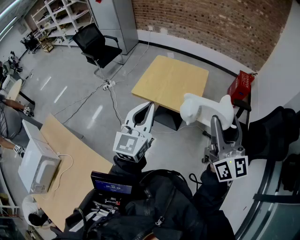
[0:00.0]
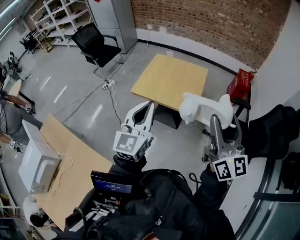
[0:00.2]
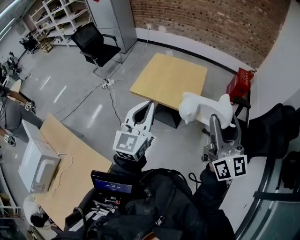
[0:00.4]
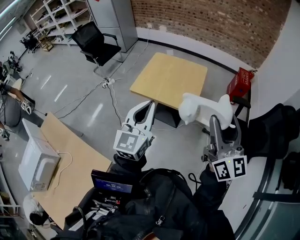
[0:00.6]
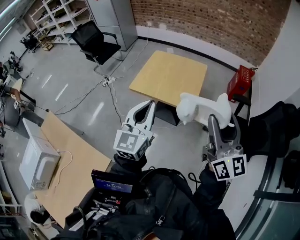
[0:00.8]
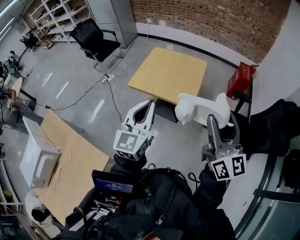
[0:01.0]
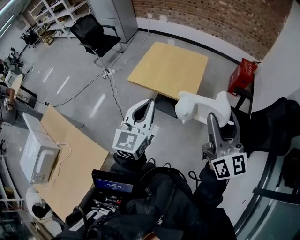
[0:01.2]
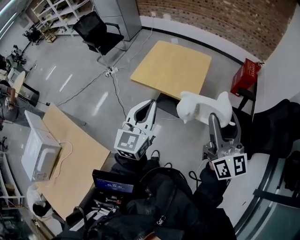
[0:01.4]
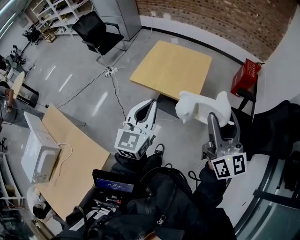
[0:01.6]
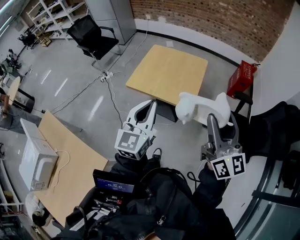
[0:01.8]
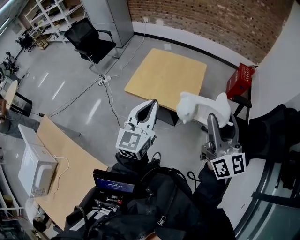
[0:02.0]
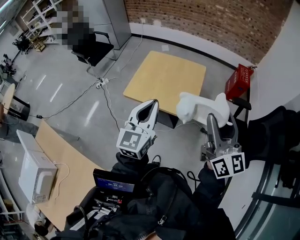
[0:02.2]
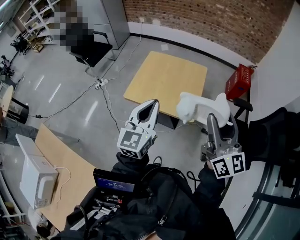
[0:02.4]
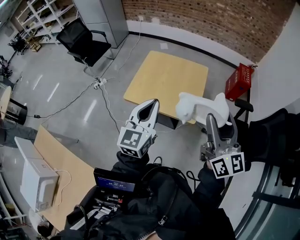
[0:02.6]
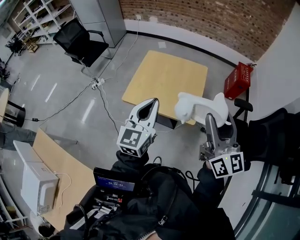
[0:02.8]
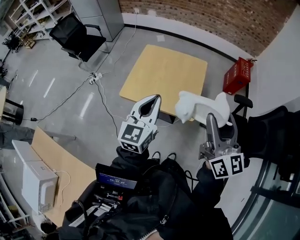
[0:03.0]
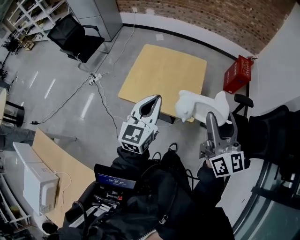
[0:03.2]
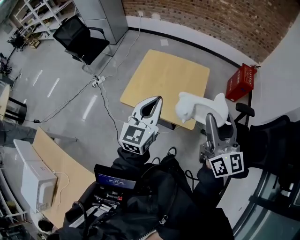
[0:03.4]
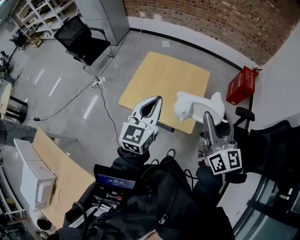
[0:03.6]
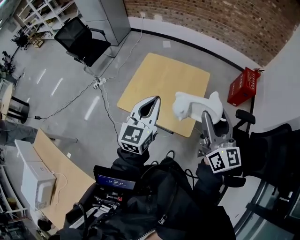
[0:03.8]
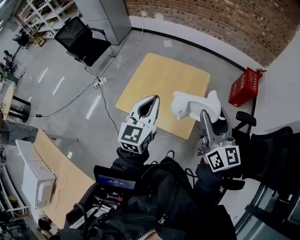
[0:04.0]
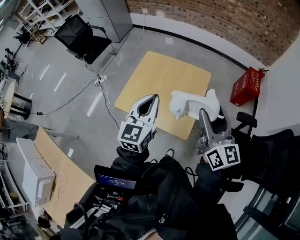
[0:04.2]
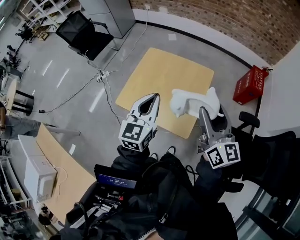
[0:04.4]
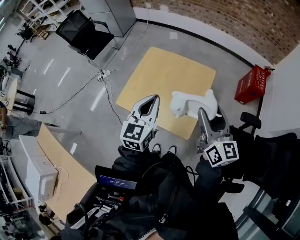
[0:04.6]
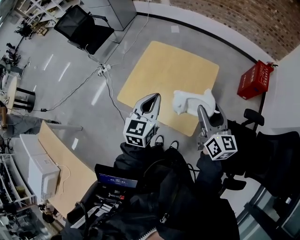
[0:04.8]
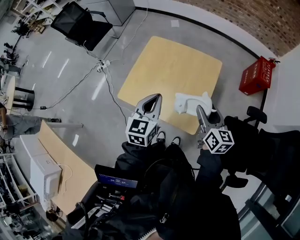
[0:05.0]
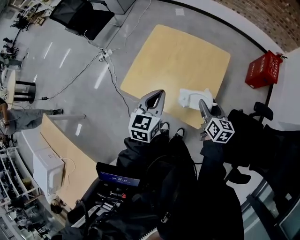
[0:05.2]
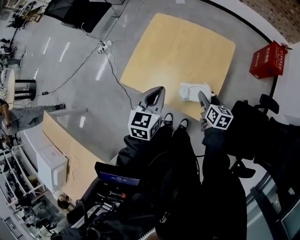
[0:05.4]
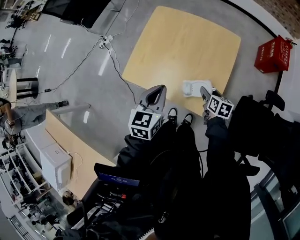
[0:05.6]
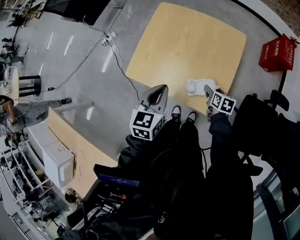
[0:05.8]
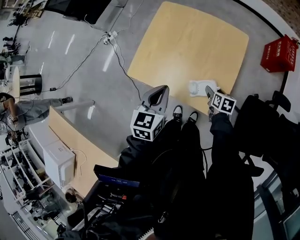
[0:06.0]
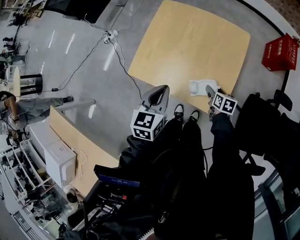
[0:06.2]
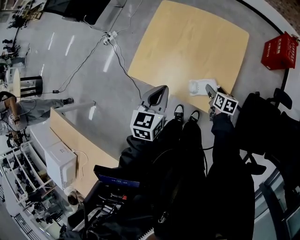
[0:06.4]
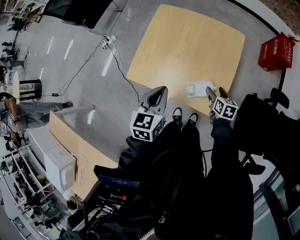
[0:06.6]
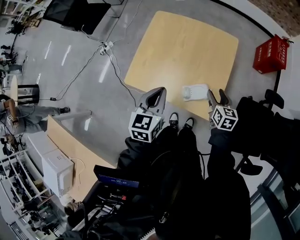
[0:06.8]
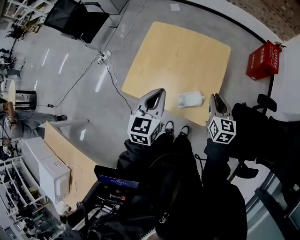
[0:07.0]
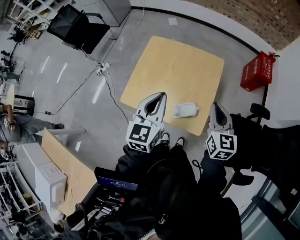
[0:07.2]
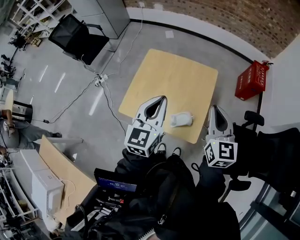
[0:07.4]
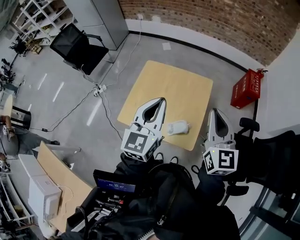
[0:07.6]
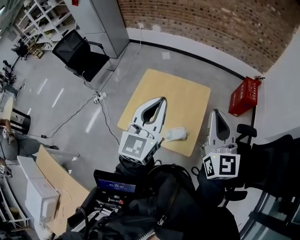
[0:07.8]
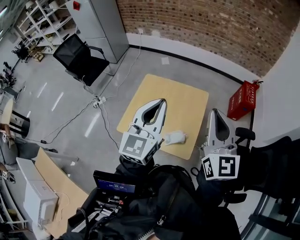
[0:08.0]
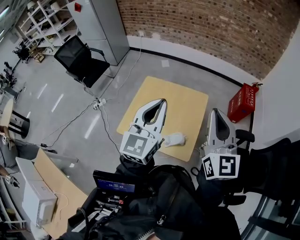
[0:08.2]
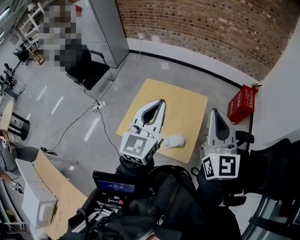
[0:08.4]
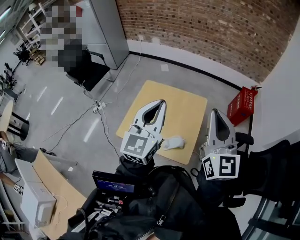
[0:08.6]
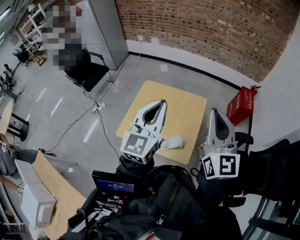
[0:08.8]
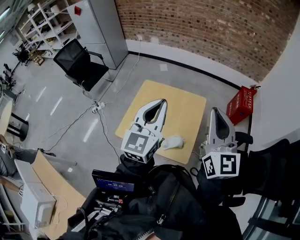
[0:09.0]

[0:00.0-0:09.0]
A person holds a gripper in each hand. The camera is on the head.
0:00.0 to 0:01.6: The right gripper shifts by roughly 5 cm. The left gripper travels to the right by some 5 cm.
0:01.6 to 0:03.0: Both grippers travel together forward, about 20 cm.
0:03.0 to 0:04.4: The left gripper is displaced forward and to the right by roughly 15 cm. The right gripper is displaced forward by approximately 20 cm.
0:04.4 to 0:06.0: The left gripper heads downward and to the left, covering some 20 cm, and rotates approximately 20 degrees; the right gripper shifts some 50 cm downward, and angles its fingers downward, by some 60 degrees.
0:06.0 to 0:07.6: The left gripper heads upward, covering about 25 cm, and angles its fingers upward, by roughly 30 degrees; the right gripper heads upward, covering some 50 cm, tips its fingers upward by some 50 degrees, and closes its fingers.
0:07.6 to 0:09.0: Both grippers move upward, roughly 10 cm.

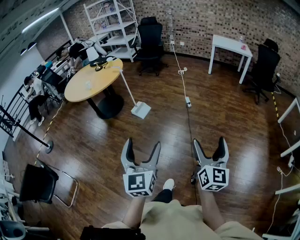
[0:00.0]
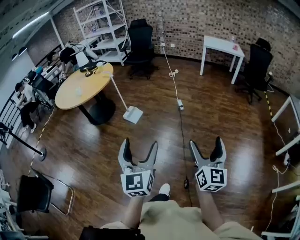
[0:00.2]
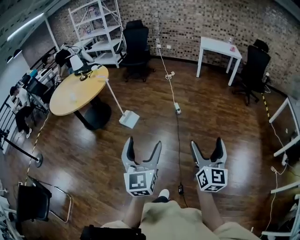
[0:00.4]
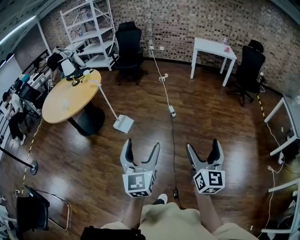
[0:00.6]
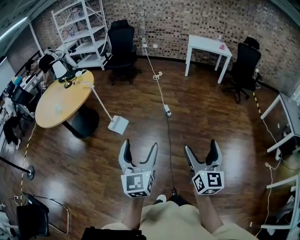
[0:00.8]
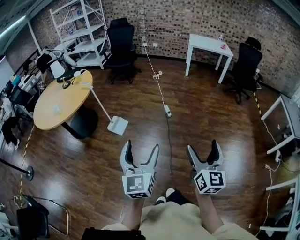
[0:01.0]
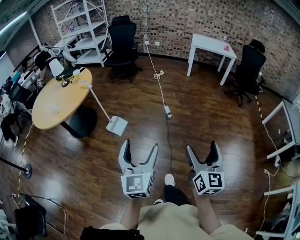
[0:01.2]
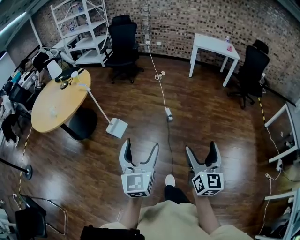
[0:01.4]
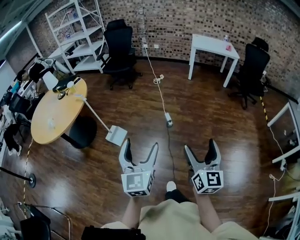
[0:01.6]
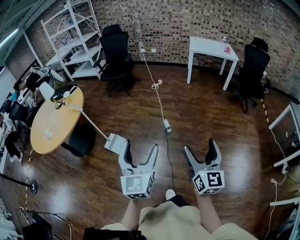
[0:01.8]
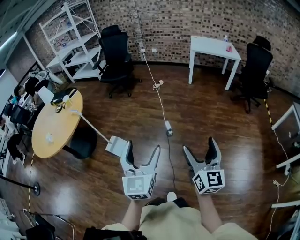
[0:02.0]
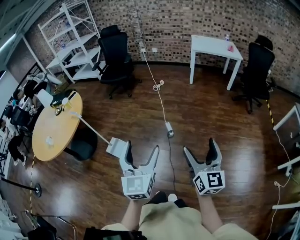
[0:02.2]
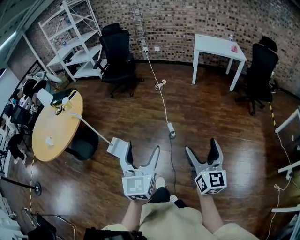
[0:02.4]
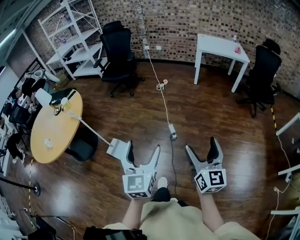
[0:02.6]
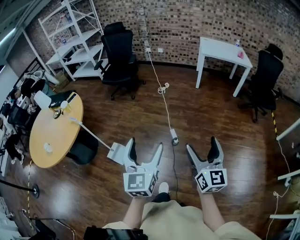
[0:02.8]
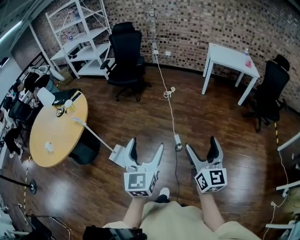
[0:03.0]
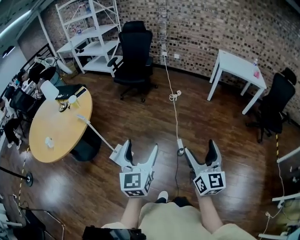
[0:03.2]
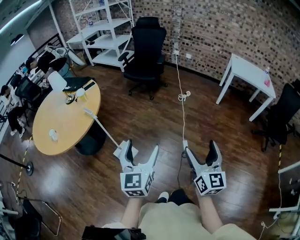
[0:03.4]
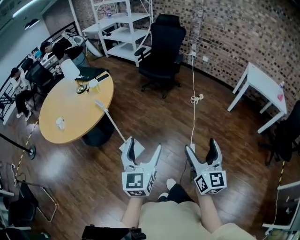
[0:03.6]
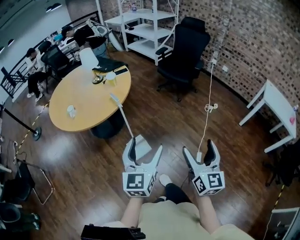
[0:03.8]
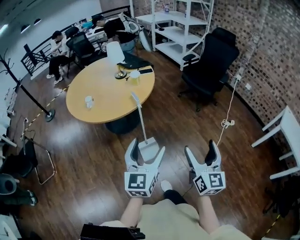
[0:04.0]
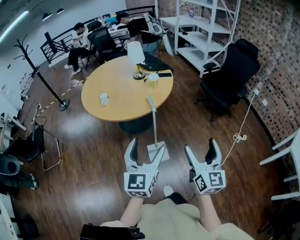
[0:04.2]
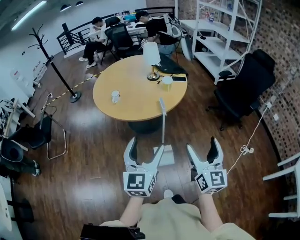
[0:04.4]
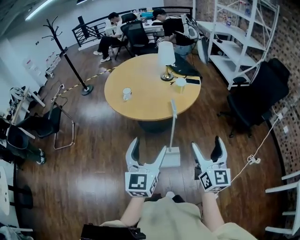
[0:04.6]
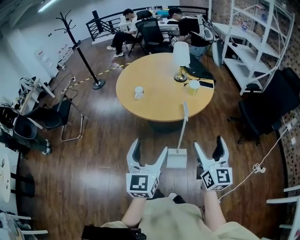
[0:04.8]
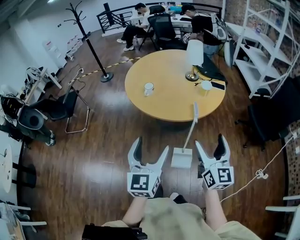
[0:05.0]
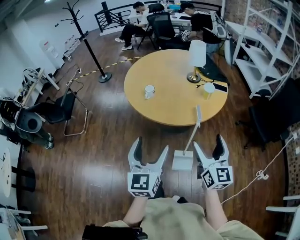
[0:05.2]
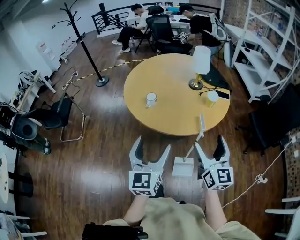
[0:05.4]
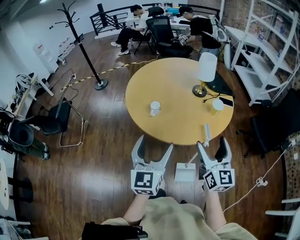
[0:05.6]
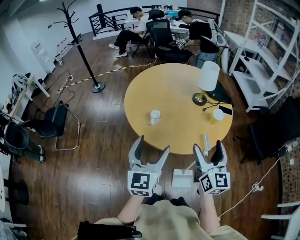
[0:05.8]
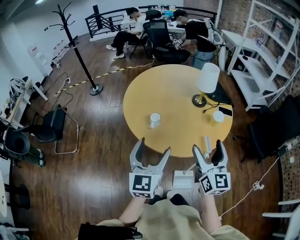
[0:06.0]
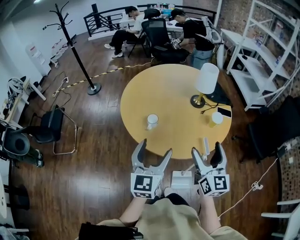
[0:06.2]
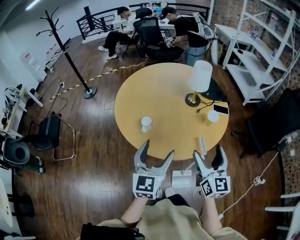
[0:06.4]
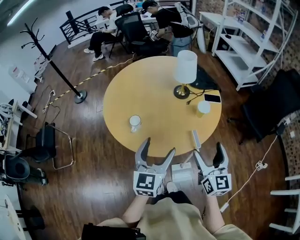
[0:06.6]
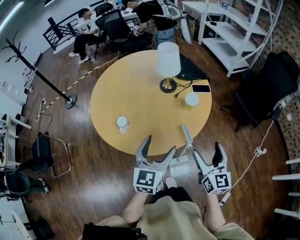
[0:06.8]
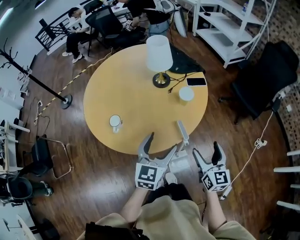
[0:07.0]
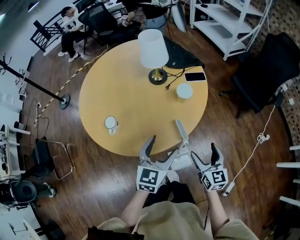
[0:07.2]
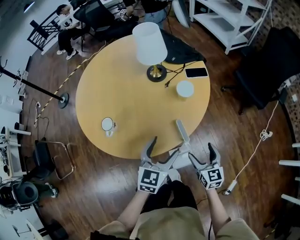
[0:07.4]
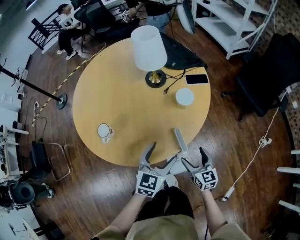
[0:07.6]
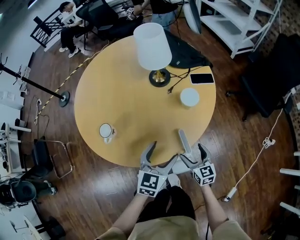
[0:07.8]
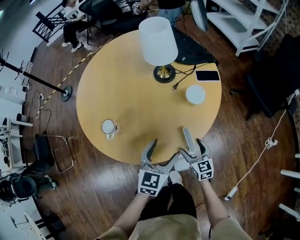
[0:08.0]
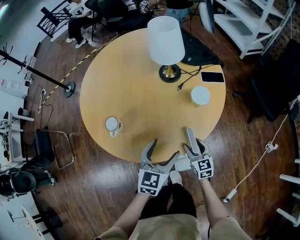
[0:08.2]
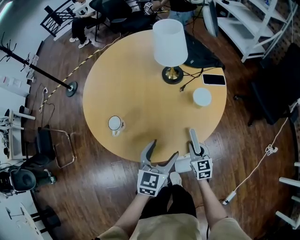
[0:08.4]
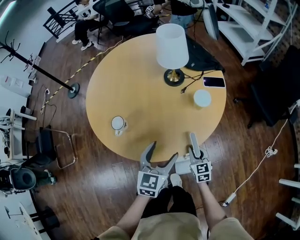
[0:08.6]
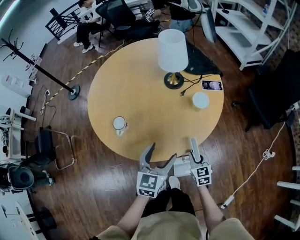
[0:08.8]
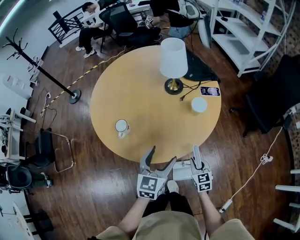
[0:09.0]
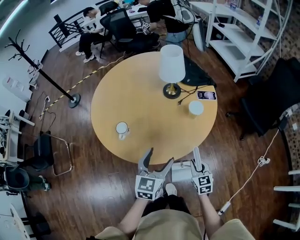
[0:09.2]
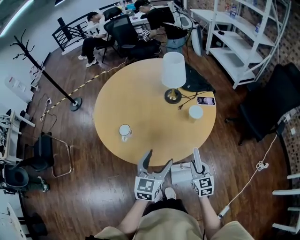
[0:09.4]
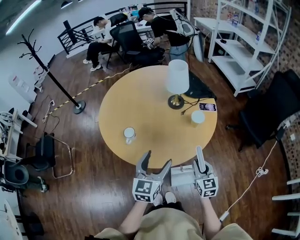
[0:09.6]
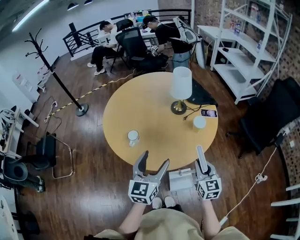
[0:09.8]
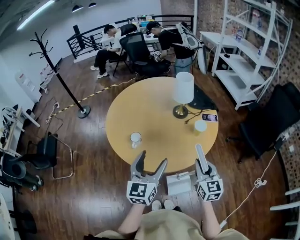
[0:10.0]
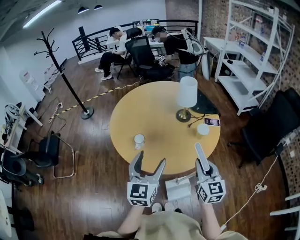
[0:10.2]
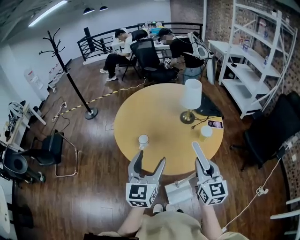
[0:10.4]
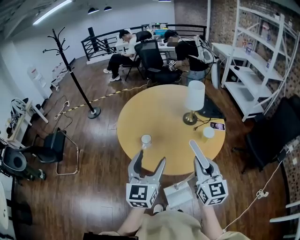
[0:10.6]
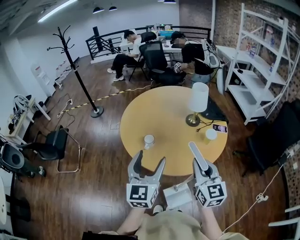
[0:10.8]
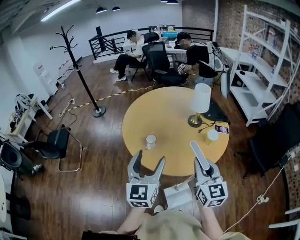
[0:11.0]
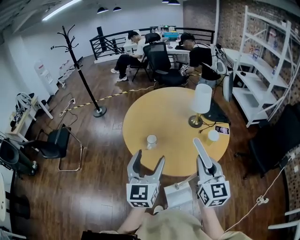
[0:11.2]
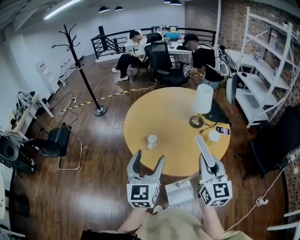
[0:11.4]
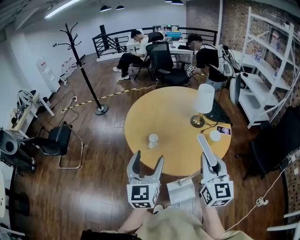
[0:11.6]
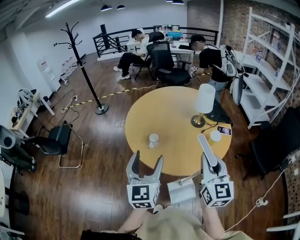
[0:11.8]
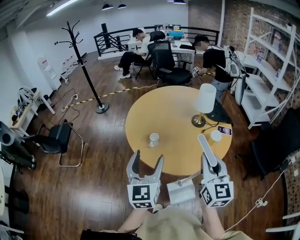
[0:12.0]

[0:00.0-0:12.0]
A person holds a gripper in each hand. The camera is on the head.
0:00.0 to 0:01.6: Both grippers travel together forward, approximately 40 cm.
0:01.6 to 0:03.0: Both grippers travel together forward, roughly 30 cm.
0:03.0 to 0:04.4: The left gripper ends up about 35 cm from where it was, and rotates approximately 50 degrees. Meanwhile the right gripper moves roughly 50 cm, and turns by some 60 degrees.
0:04.4 to 0:06.0: The two grippers go roughly 35 cm forward and to the left.
0:06.0 to 0:07.6: The right gripper travels downward and to the right by some 35 cm, and swivels approximately 30 degrees. Meanwhile the left gripper moves to the right, downward and forward, approximately 35 cm, and changes its angle by some 40 degrees.
0:07.6 to 0:09.0: The right gripper closes. The left gripper travels to the left by roughly 5 cm.
0:09.0 to 0:10.4: The right gripper is displaced upward by roughly 35 cm, and swivels about 30 degrees. The left gripper shifts some 25 cm upward and to the left, and rotates about 30 degrees.
0:10.4 to 0:12.0: The right gripper heads upward, covering about 5 cm; the left gripper is displaced to the left by about 5 cm.

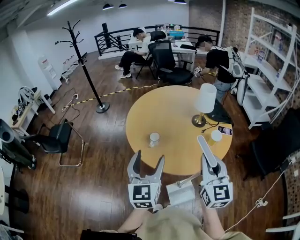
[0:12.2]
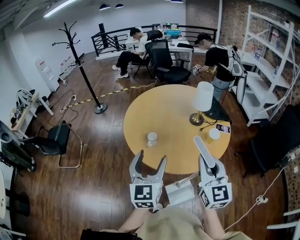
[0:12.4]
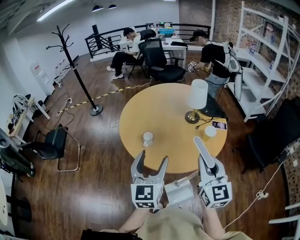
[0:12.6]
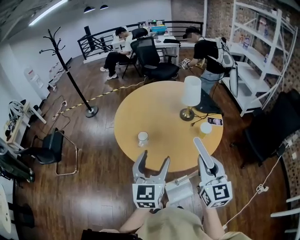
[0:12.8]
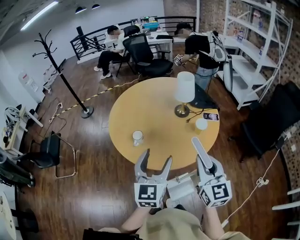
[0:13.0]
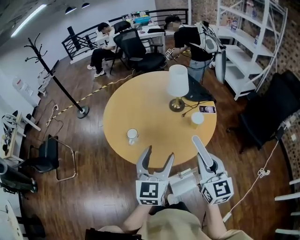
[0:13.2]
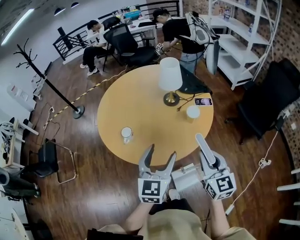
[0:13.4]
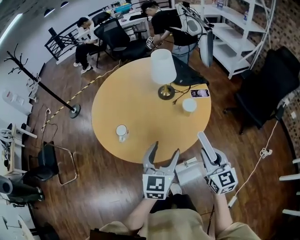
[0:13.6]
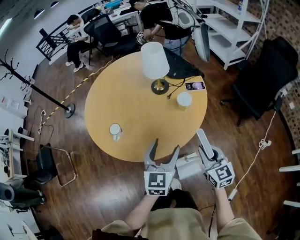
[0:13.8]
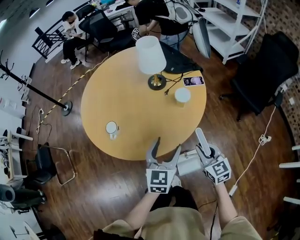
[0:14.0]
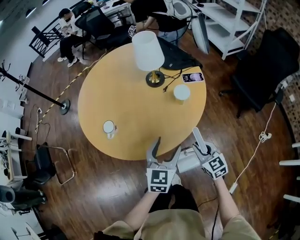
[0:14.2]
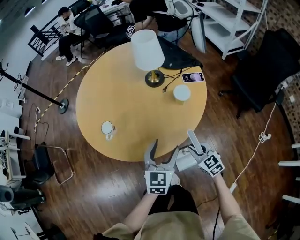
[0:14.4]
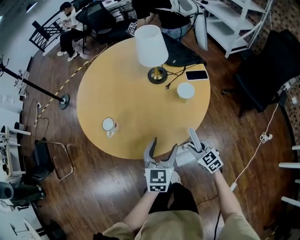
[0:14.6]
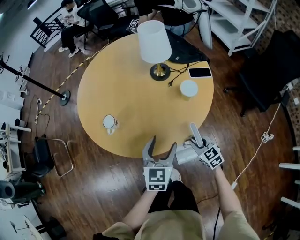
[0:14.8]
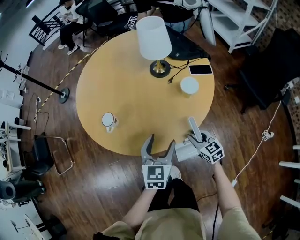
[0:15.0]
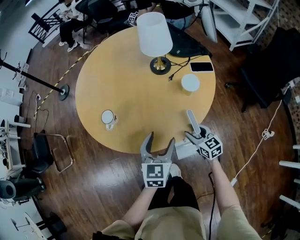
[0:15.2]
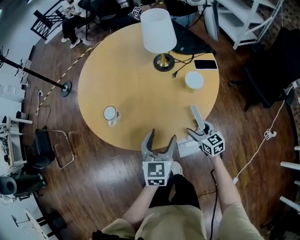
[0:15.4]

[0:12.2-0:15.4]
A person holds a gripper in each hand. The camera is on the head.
0:12.2 to 0:13.8: The right gripper heads downward and to the right, covering about 25 cm, and changes its angle by roughly 20 degrees. The left gripper goes about 25 cm to the right and downward, and swivels about 30 degrees.
0:13.8 to 0:15.4: The right gripper heads downward and forward, covering about 25 cm, and opens its fingers. The left gripper travels downward by some 10 cm.
